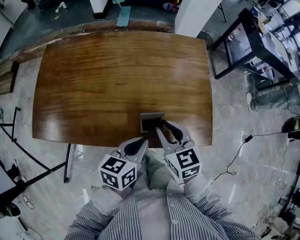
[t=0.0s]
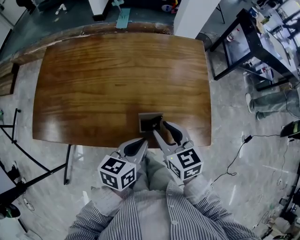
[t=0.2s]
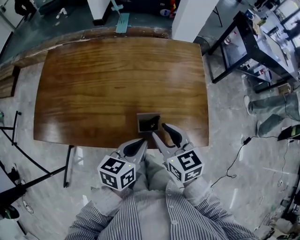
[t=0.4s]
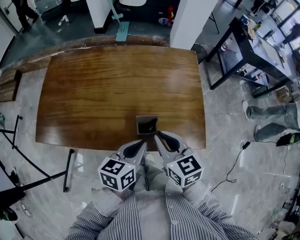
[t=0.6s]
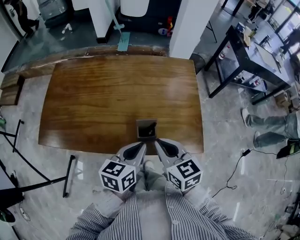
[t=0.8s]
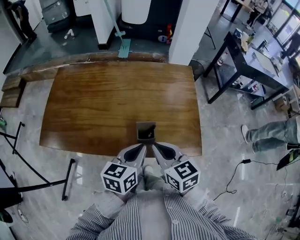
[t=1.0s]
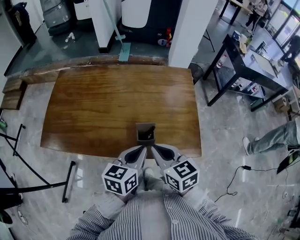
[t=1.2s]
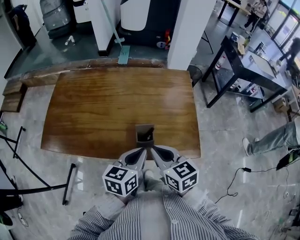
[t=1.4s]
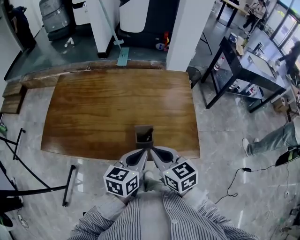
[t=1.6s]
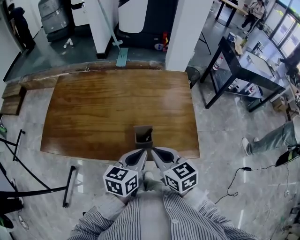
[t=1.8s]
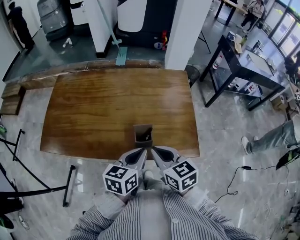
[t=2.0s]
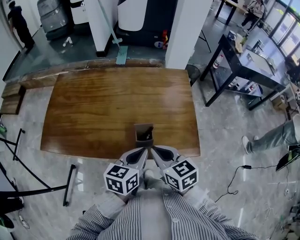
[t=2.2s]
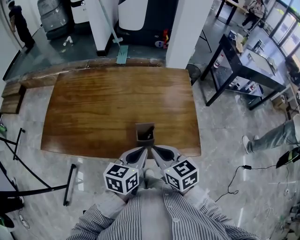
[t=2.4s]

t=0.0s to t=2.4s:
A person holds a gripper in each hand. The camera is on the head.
t=0.0s to t=1.2s: The left gripper heads upward, covering some 5 cm; the right gripper heads upward and backward, covering about 10 cm, and closes up.
t=1.2s to t=2.4s: The two grippers keep their place.

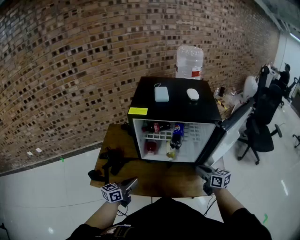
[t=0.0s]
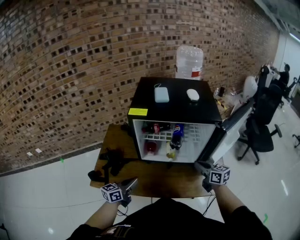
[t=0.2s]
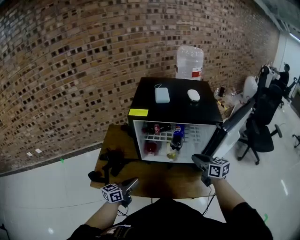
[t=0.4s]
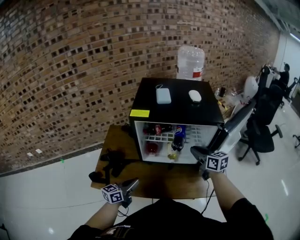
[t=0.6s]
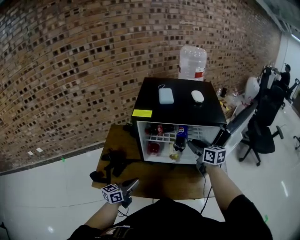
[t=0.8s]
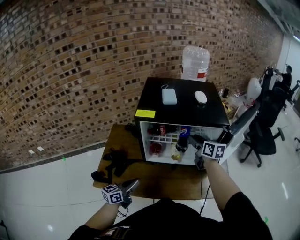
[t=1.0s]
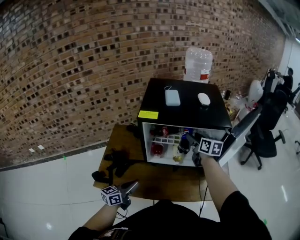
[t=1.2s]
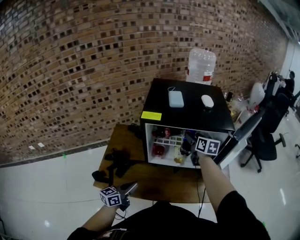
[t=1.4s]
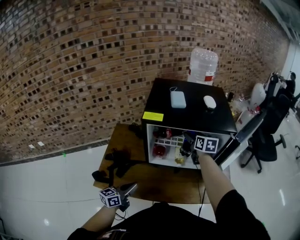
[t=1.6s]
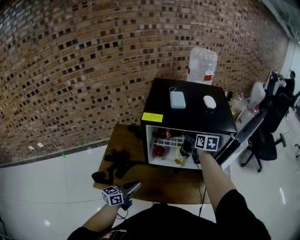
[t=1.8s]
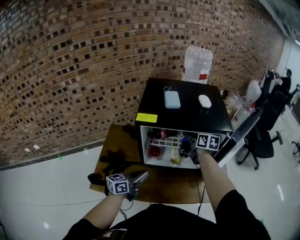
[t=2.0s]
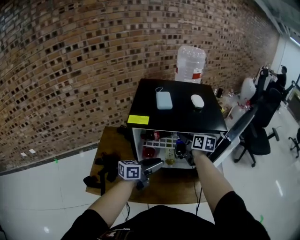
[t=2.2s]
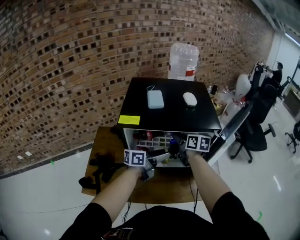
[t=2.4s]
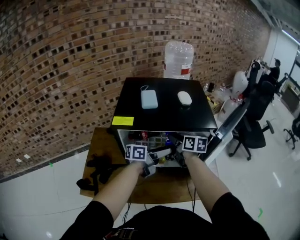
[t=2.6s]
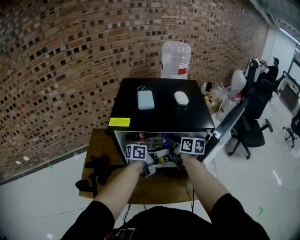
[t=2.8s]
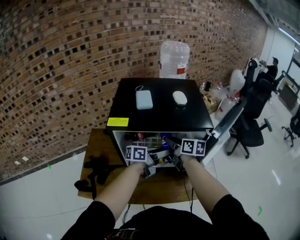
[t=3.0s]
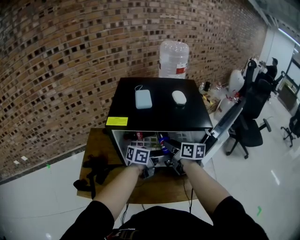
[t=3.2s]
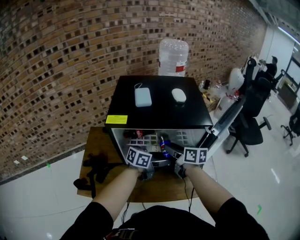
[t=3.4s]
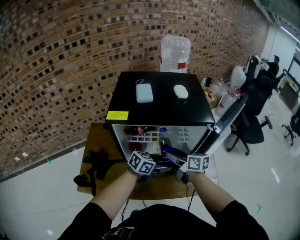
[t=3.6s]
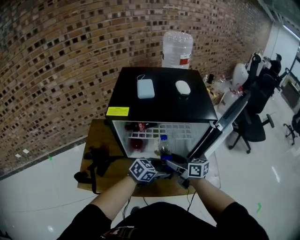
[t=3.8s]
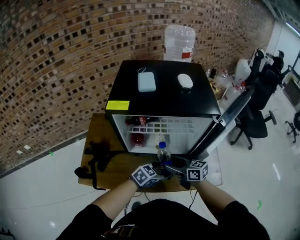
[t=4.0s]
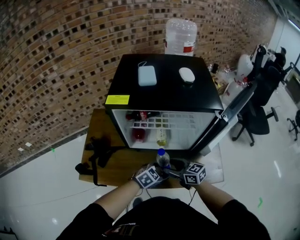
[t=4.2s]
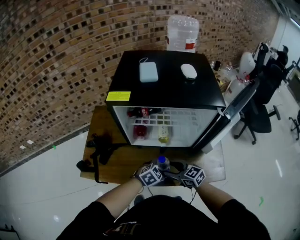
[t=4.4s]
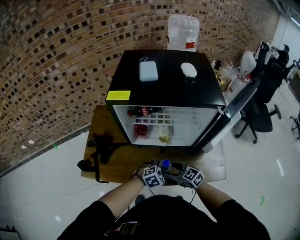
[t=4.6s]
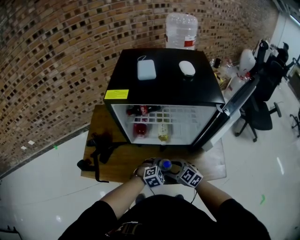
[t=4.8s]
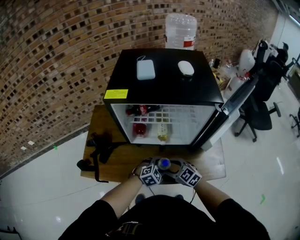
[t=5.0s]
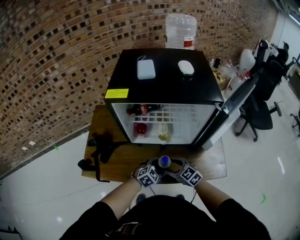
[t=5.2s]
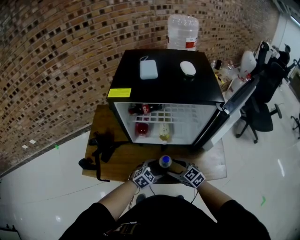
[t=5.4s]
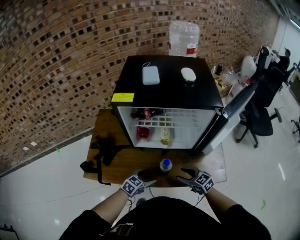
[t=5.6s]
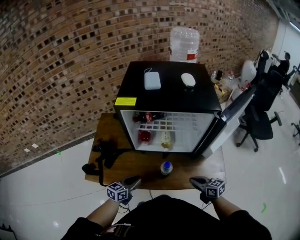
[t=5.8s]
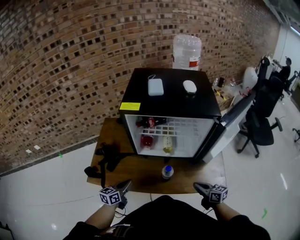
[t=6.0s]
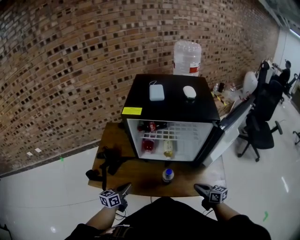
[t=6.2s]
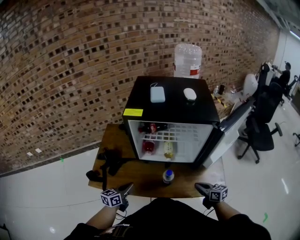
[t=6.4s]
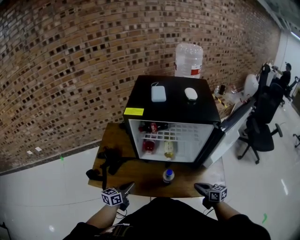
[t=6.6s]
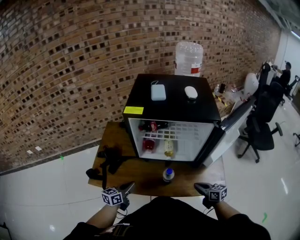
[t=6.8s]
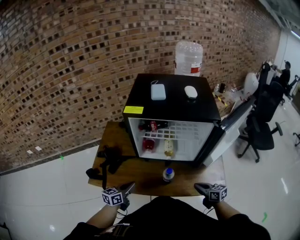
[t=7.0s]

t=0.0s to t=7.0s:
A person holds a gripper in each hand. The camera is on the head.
t=0.0s to t=1.4s: The right gripper is displaced forward and to the left by about 25 cm, and opens up.
t=1.4s to t=2.8s: The left gripper goes about 35 cm forward and to the right, swivels roughly 40 degrees, and opens.
t=2.8s to t=4.2s: The left gripper goes approximately 20 cm downward, and points its fingers roughly 40 degrees further downward. Meanwhile the right gripper ends up some 25 cm from where it was, and turns by roughly 30 degrees.
t=4.2s to t=5.6s: The left gripper shifts by approximately 10 cm; the right gripper changes place by roughly 10 cm.
t=5.6s to t=7.0s: The right gripper travels to the right by roughly 10 cm, swivels about 30 degrees, and closes; the left gripper travels to the left and upward by about 15 cm, swivels about 40 degrees, and closes.

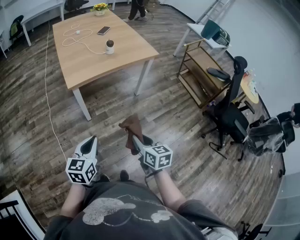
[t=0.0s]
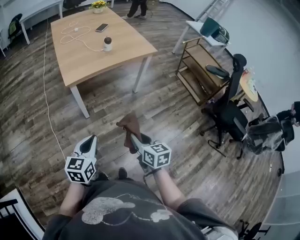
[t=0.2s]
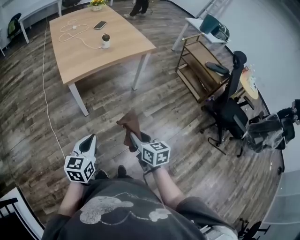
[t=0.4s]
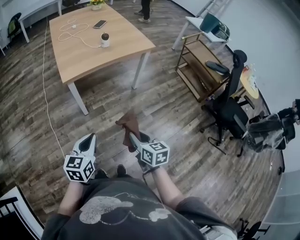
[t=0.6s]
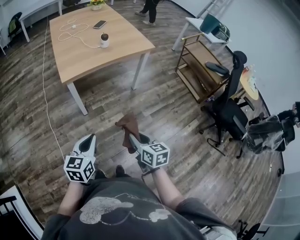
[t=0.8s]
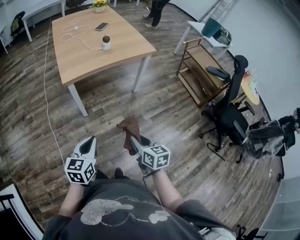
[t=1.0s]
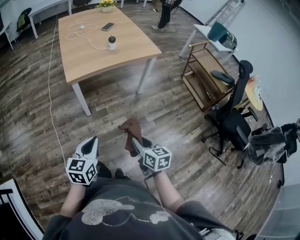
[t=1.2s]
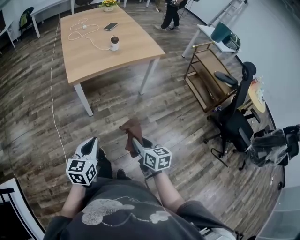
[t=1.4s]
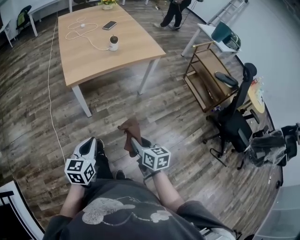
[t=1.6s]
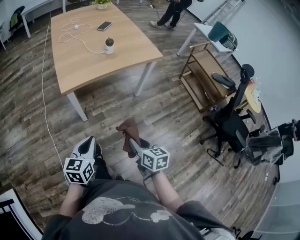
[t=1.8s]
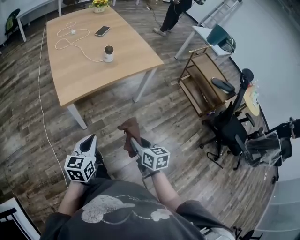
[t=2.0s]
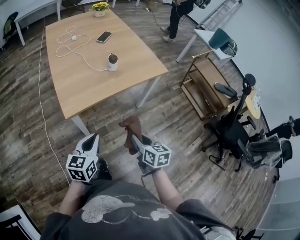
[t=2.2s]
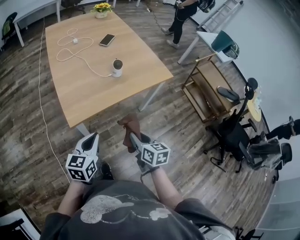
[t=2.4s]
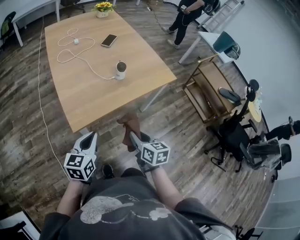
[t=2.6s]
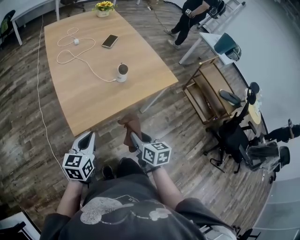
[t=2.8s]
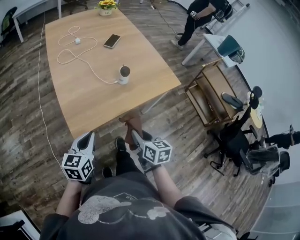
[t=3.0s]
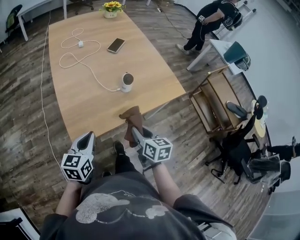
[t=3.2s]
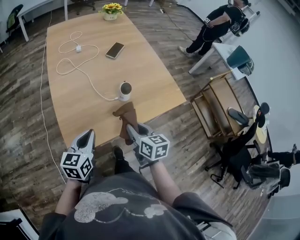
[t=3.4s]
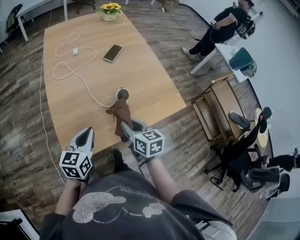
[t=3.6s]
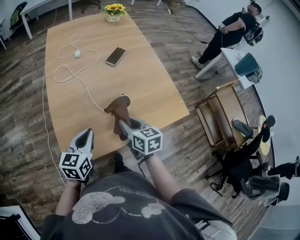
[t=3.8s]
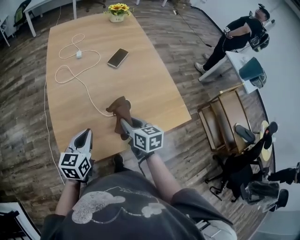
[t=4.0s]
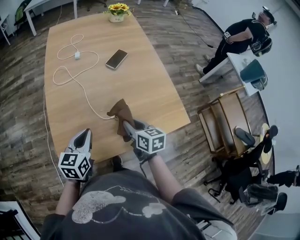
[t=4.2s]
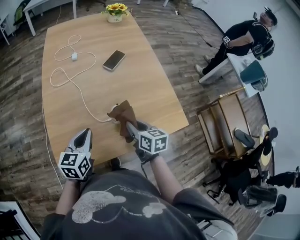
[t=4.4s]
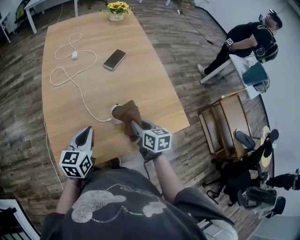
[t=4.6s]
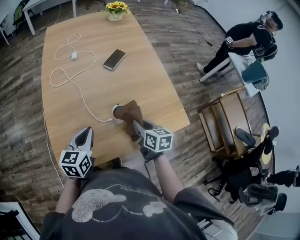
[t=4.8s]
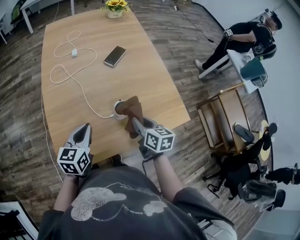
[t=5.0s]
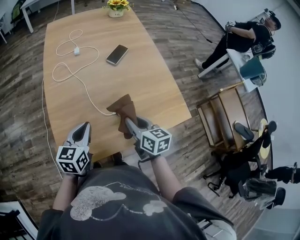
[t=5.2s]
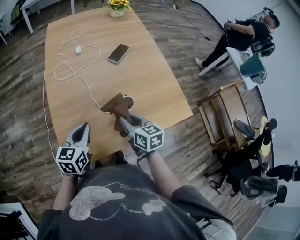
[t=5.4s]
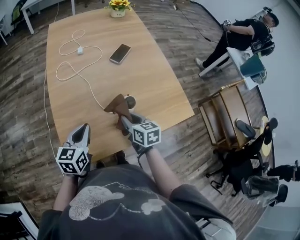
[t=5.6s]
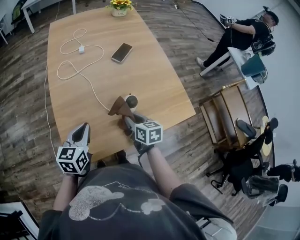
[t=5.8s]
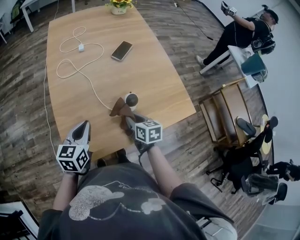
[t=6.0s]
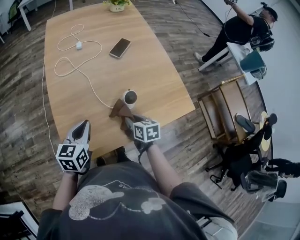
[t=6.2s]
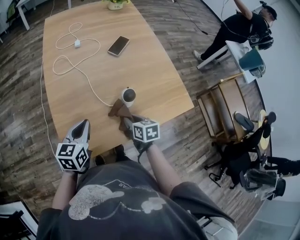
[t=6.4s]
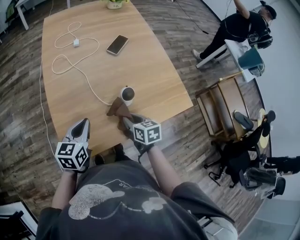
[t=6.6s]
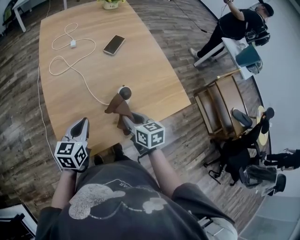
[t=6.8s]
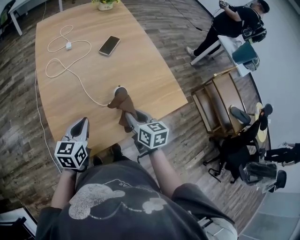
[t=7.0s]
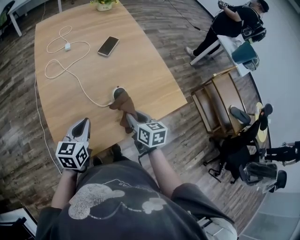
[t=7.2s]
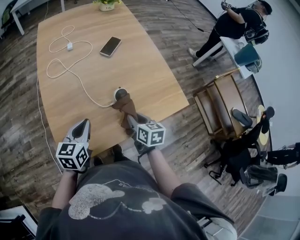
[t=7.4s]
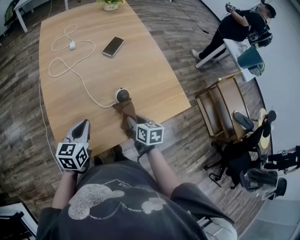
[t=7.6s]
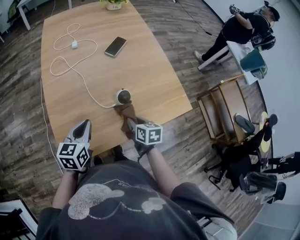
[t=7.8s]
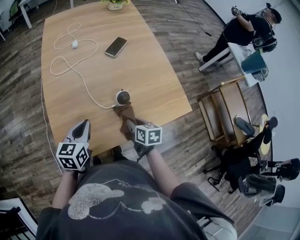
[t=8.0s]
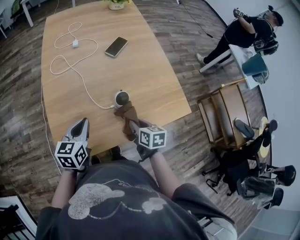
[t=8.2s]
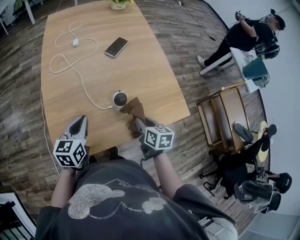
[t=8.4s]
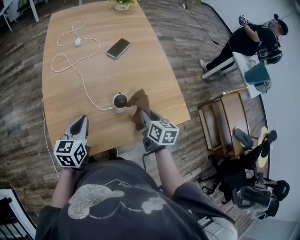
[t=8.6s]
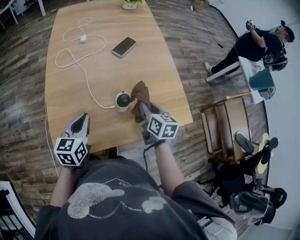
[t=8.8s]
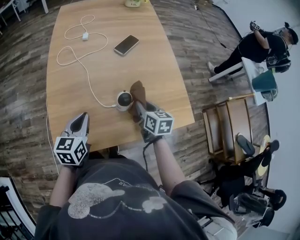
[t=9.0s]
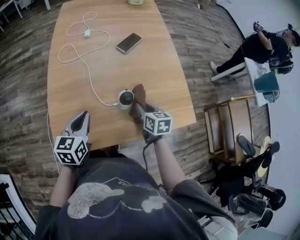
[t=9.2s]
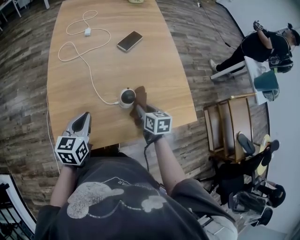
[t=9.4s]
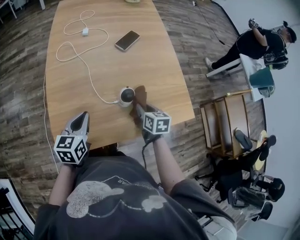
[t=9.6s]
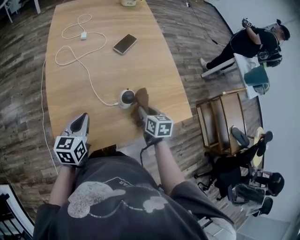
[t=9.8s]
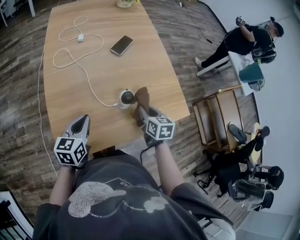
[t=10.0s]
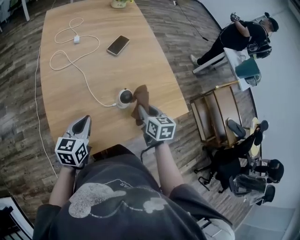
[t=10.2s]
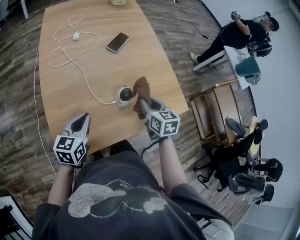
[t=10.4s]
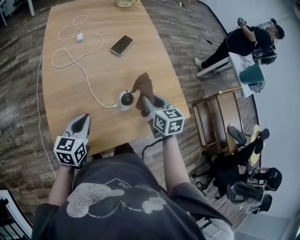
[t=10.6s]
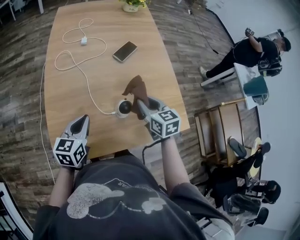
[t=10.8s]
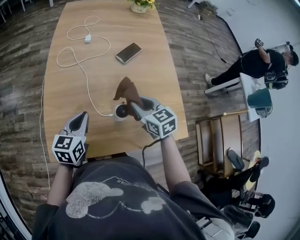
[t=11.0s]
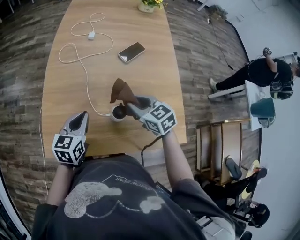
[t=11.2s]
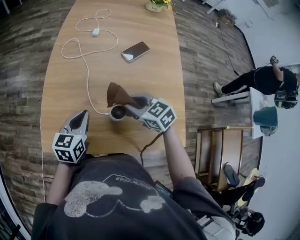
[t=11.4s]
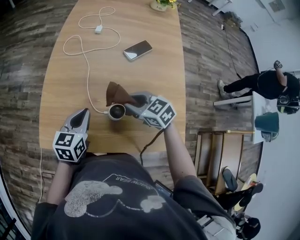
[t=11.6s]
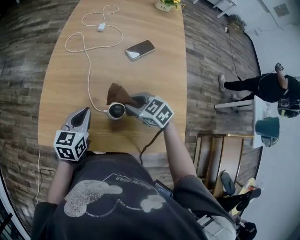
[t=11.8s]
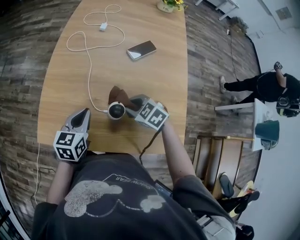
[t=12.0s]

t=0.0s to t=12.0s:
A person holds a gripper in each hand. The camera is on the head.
t=0.0s to t=1.6s: The right gripper ends up some 5 cm from where it was.
t=1.6s to t=3.0s: The two grippers go roughly 30 cm forward.
t=3.0s to t=4.4s: Both grippers move forward, approximately 25 cm.
t=4.4s to t=6.0s: The grippers both shift to the left by some 5 cm.
t=6.0s to t=7.6s: The right gripper reaches about 5 cm upward, then returns.
t=7.6s to t=9.0s: The right gripper heads forward, covering approximately 10 cm.
t=9.0s to t=10.4s: The right gripper changes place by roughly 5 cm.
t=10.4s to t=12.0s: The right gripper goes about 10 cm downward, and swivels about 80 degrees. The left gripper changes place by roughly 5 cm, and swivels roughly 30 degrees.

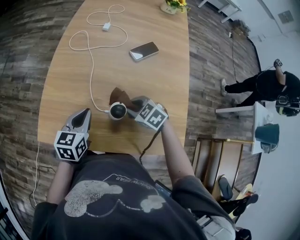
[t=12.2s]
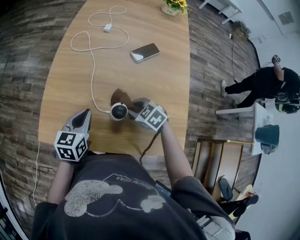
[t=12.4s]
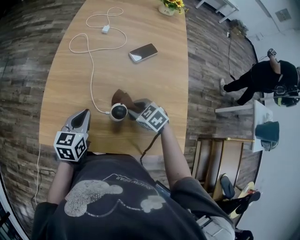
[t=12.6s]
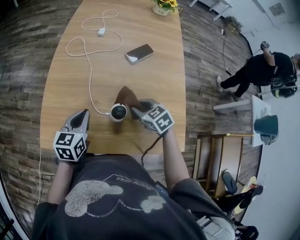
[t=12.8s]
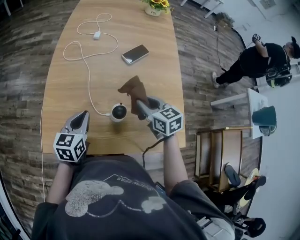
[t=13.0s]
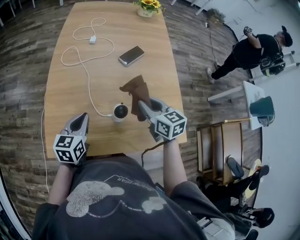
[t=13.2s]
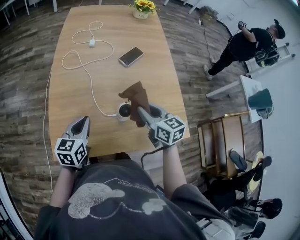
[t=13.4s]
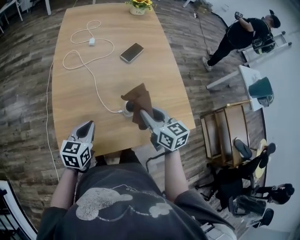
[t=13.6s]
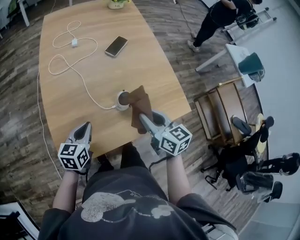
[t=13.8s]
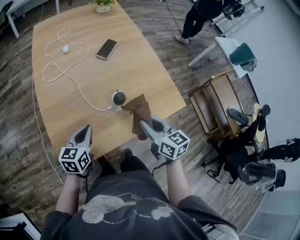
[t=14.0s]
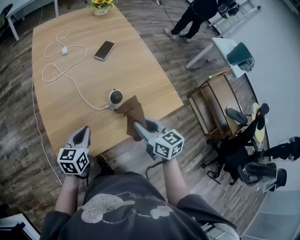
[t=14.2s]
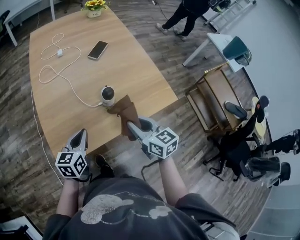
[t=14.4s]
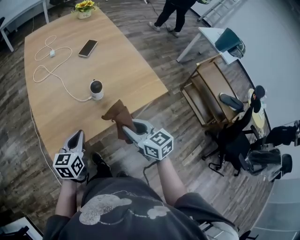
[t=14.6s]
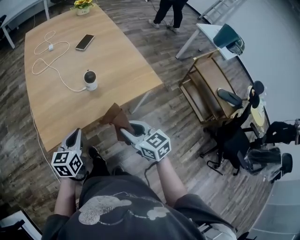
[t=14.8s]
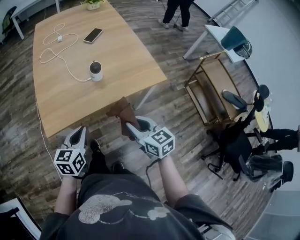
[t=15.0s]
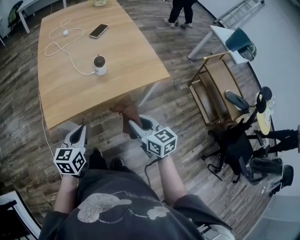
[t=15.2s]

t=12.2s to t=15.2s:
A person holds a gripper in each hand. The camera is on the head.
t=12.2s to t=13.8s: The left gripper moves roughly 5 cm, and rotates some 30 degrees, while the right gripper is displaced upward by approximately 15 cm, and angles its fingers upward, by roughly 30 degrees.
t=13.8s to t=15.2s: The two grippers go some 25 cm backward.
